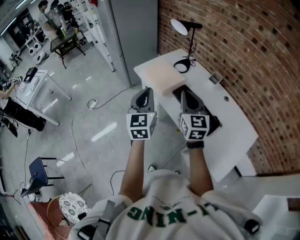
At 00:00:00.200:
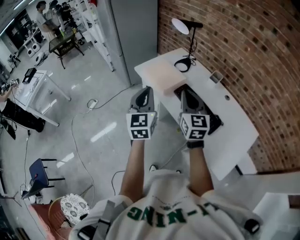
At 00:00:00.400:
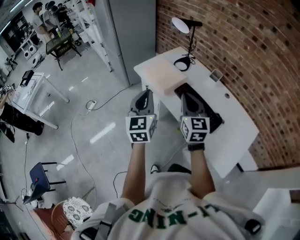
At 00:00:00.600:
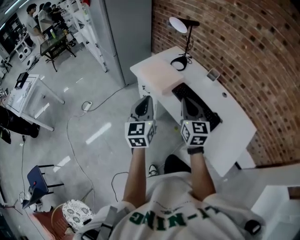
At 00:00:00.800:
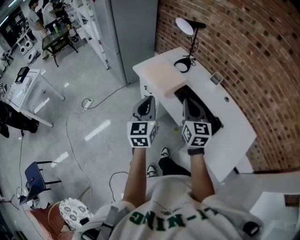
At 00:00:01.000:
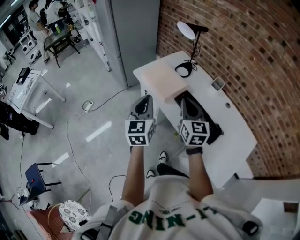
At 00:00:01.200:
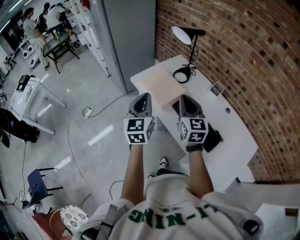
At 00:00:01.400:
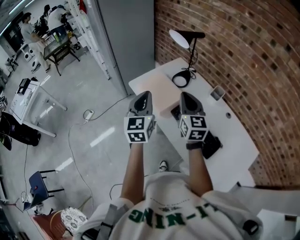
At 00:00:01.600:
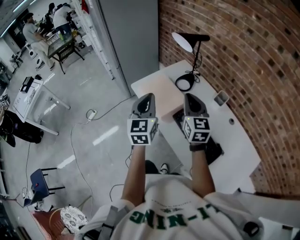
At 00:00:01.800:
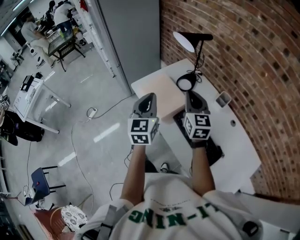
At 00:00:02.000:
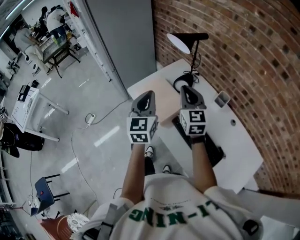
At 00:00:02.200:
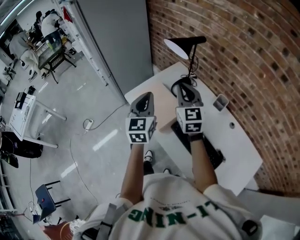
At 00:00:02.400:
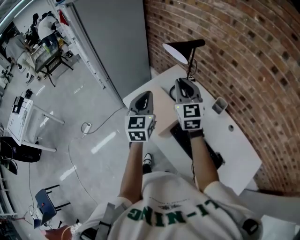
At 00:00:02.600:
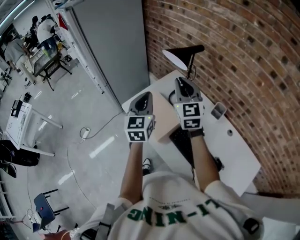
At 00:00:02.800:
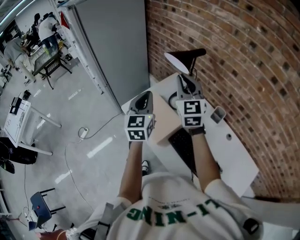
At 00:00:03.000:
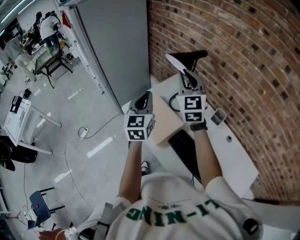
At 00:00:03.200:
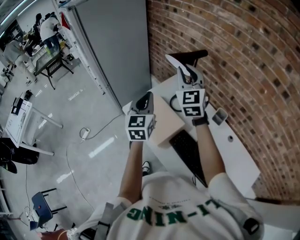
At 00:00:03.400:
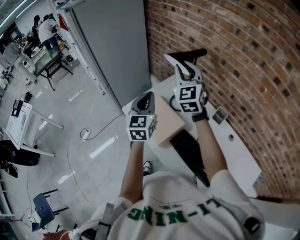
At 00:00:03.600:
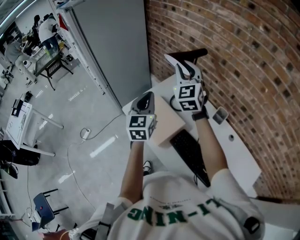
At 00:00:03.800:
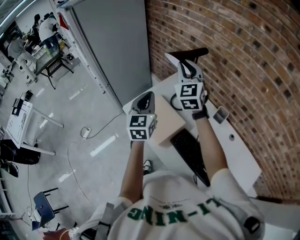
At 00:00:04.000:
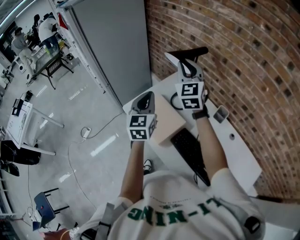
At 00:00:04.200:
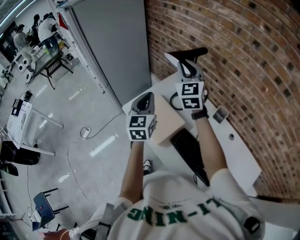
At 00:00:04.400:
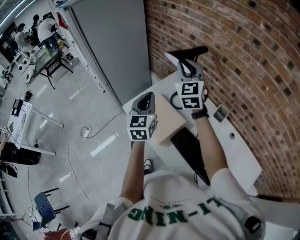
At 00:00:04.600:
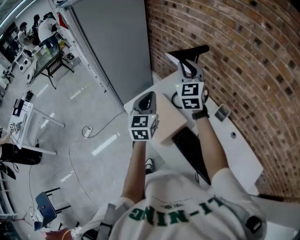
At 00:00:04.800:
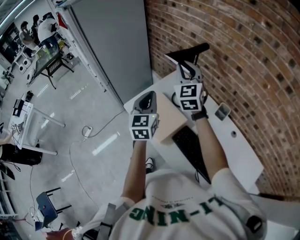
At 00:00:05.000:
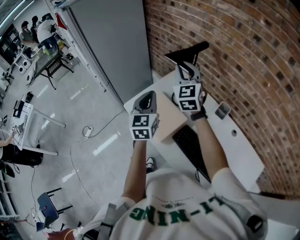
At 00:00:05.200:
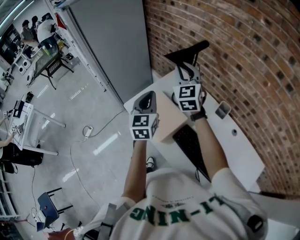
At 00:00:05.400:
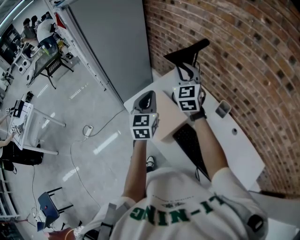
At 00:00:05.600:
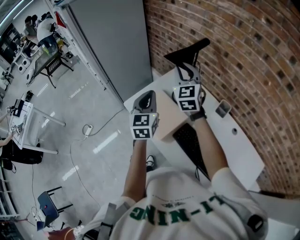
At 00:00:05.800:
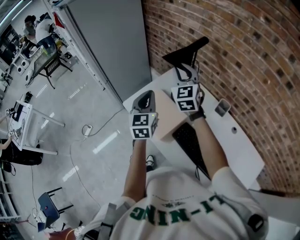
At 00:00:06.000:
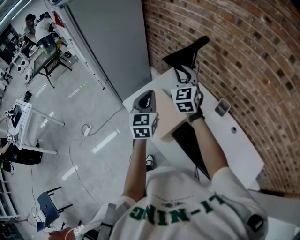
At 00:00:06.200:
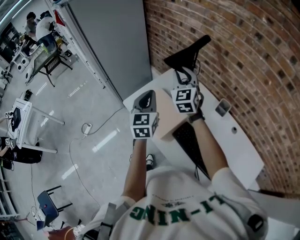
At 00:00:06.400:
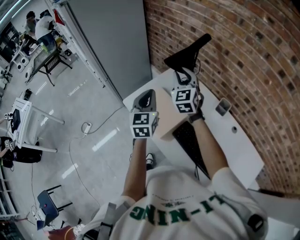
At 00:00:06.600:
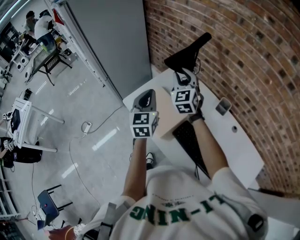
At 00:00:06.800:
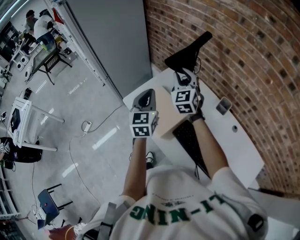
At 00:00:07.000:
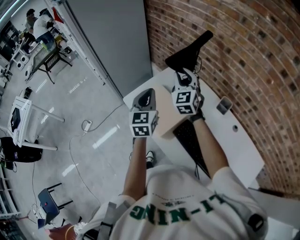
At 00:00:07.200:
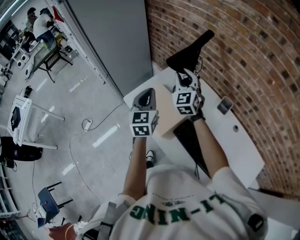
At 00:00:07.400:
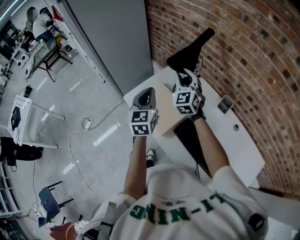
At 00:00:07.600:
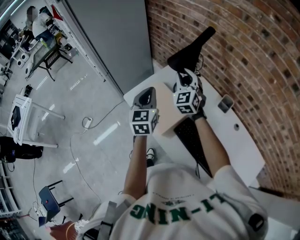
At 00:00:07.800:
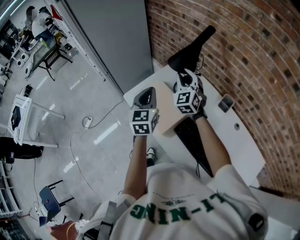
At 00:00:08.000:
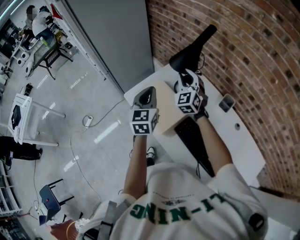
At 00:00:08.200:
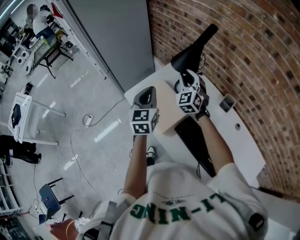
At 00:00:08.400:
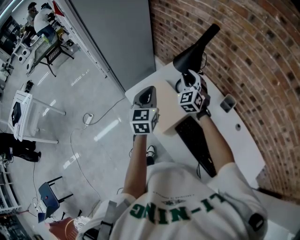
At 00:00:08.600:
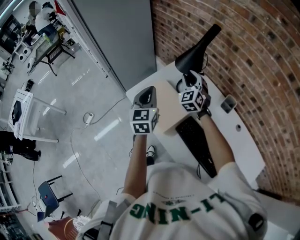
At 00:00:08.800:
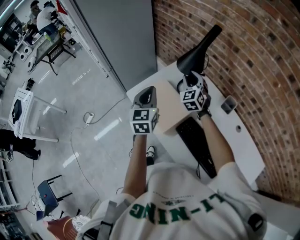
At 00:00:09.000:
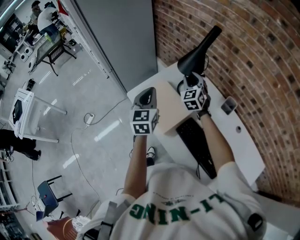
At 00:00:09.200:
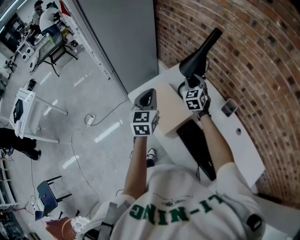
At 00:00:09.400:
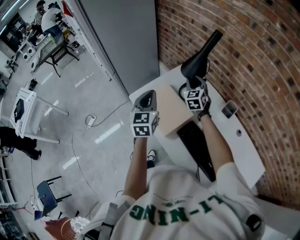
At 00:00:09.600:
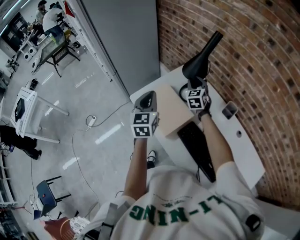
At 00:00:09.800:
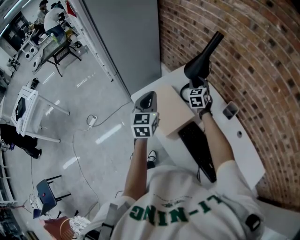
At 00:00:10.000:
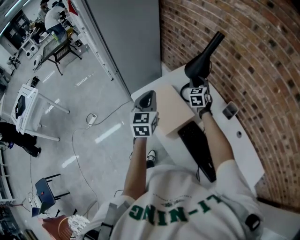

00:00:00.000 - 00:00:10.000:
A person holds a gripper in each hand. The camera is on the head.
00:00:00.000 - 00:00:01.400: Both grippers move forward, some 15 cm.
00:00:01.400 - 00:00:02.800: Both grippers move forward, some 20 cm.
00:00:02.800 - 00:00:04.200: The right gripper shifts some 5 cm forward.
00:00:04.200 - 00:00:05.800: The right gripper goes about 5 cm downward.
00:00:05.800 - 00:00:07.200: The right gripper shifts roughly 10 cm downward.
00:00:07.200 - 00:00:08.600: The right gripper moves downward, some 5 cm.
00:00:08.600 - 00:00:10.000: The right gripper shifts by roughly 5 cm, and changes its angle by approximately 20 degrees.

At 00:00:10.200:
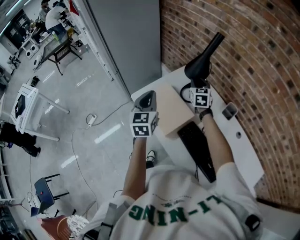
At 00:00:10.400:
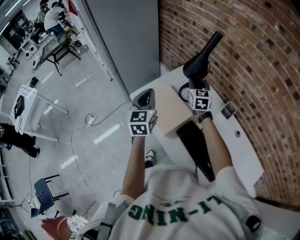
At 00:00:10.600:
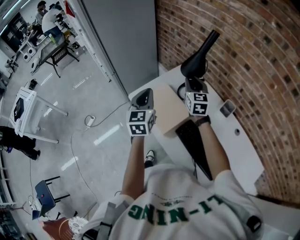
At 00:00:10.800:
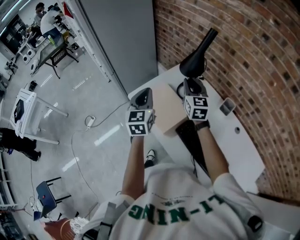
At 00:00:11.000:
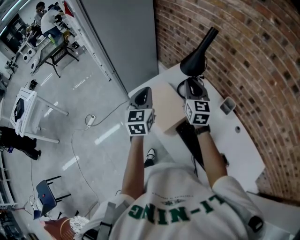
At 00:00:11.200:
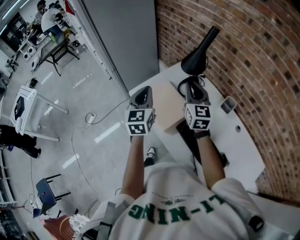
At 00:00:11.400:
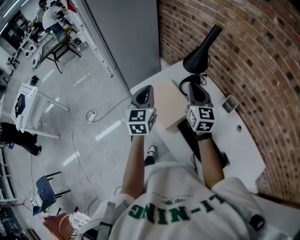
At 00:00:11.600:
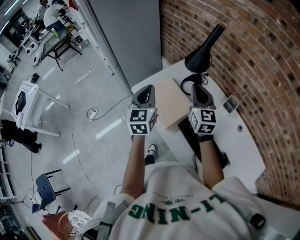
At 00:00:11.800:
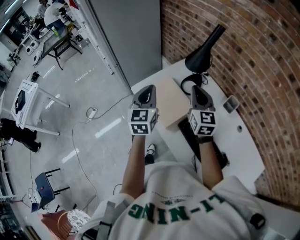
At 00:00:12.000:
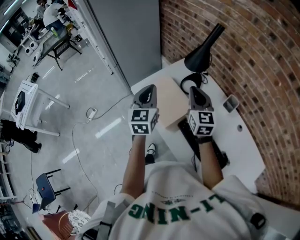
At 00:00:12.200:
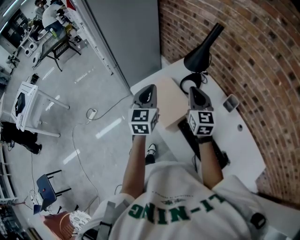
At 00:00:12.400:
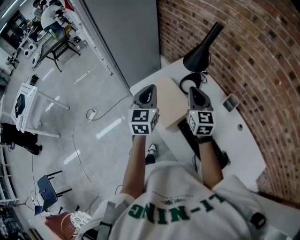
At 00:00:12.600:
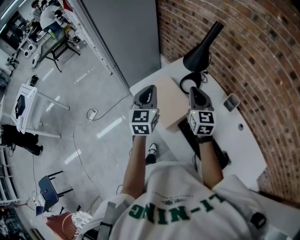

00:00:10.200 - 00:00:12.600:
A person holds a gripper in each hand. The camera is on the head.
00:00:10.200 - 00:00:11.400: The right gripper goes approximately 15 cm backward and upward, rotates approximately 20 degrees, and closes up.
00:00:11.400 - 00:00:12.600: The grippers move only a little.

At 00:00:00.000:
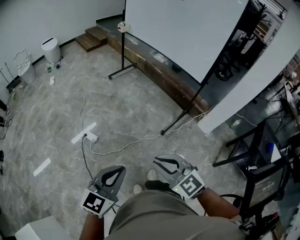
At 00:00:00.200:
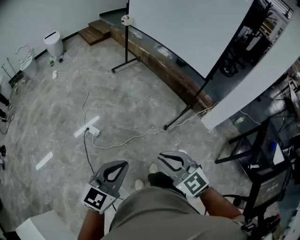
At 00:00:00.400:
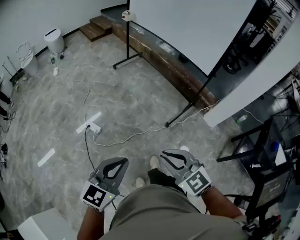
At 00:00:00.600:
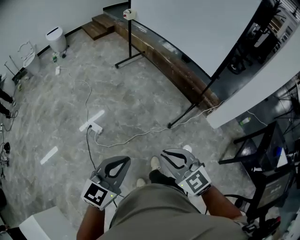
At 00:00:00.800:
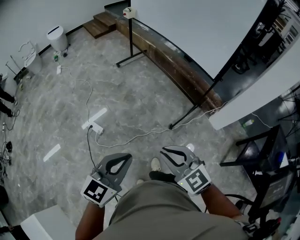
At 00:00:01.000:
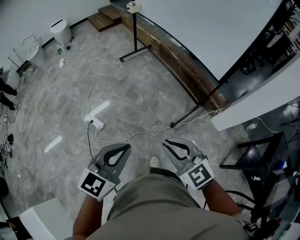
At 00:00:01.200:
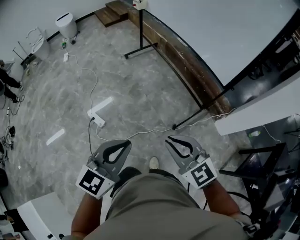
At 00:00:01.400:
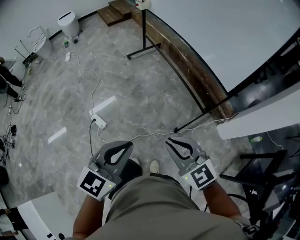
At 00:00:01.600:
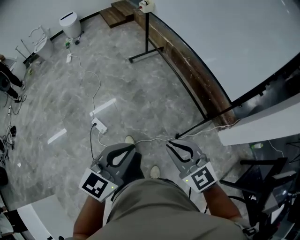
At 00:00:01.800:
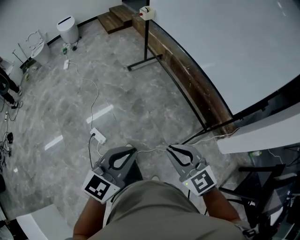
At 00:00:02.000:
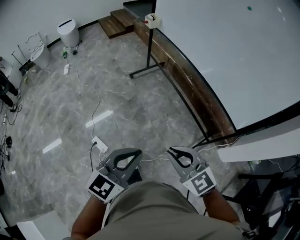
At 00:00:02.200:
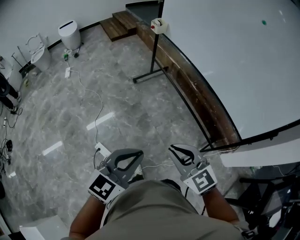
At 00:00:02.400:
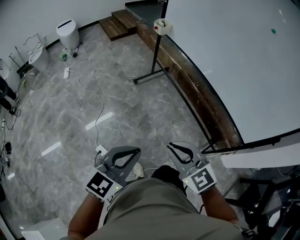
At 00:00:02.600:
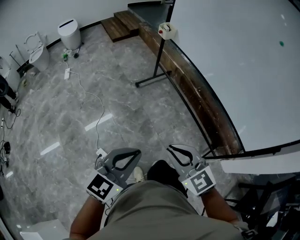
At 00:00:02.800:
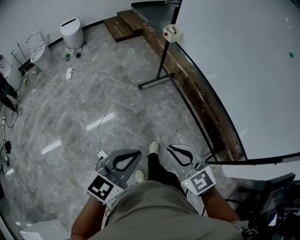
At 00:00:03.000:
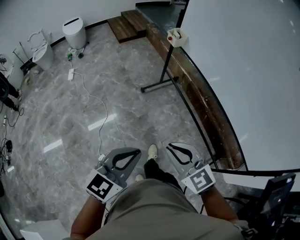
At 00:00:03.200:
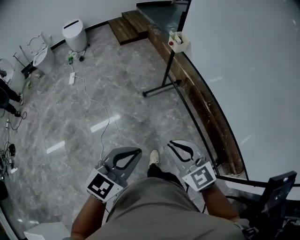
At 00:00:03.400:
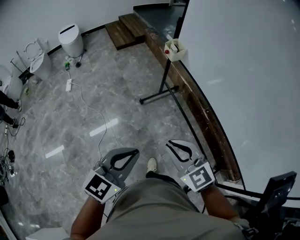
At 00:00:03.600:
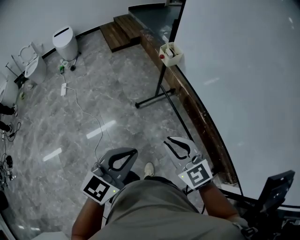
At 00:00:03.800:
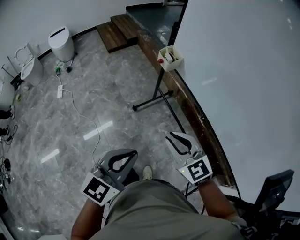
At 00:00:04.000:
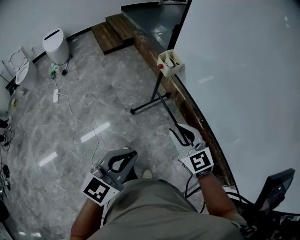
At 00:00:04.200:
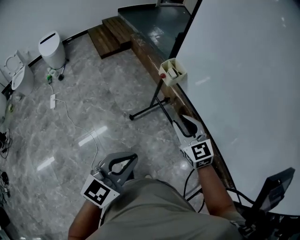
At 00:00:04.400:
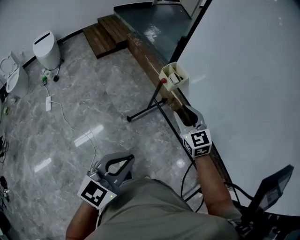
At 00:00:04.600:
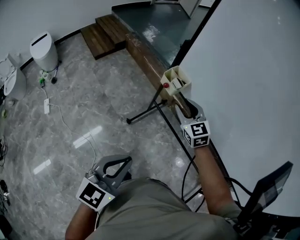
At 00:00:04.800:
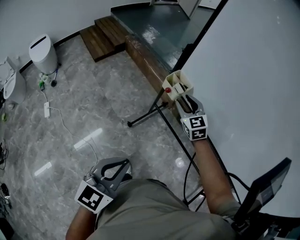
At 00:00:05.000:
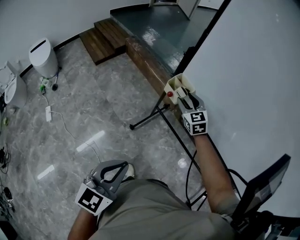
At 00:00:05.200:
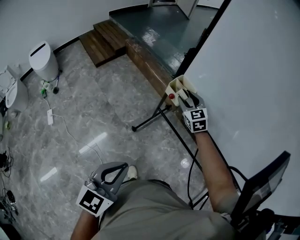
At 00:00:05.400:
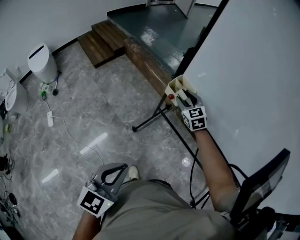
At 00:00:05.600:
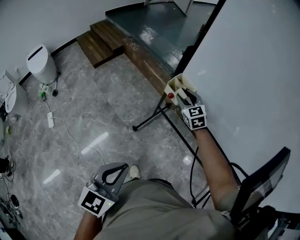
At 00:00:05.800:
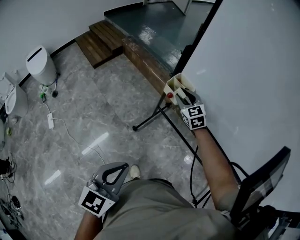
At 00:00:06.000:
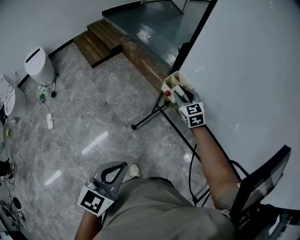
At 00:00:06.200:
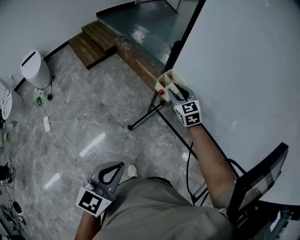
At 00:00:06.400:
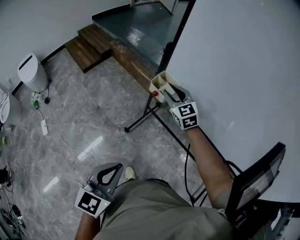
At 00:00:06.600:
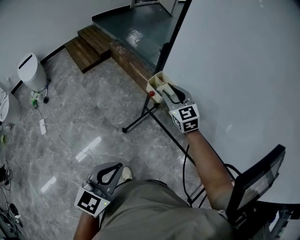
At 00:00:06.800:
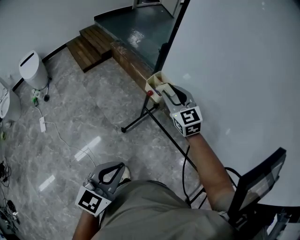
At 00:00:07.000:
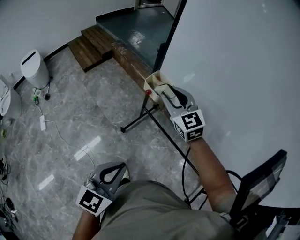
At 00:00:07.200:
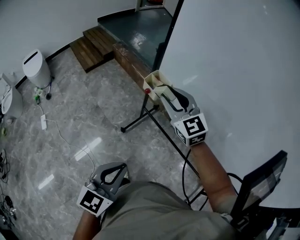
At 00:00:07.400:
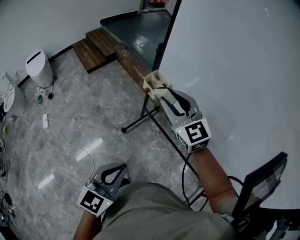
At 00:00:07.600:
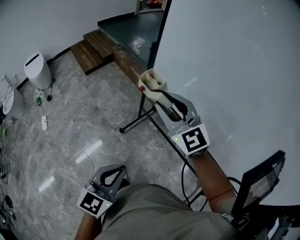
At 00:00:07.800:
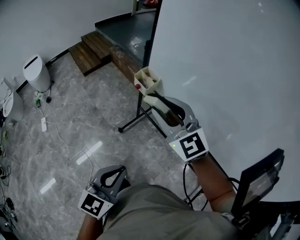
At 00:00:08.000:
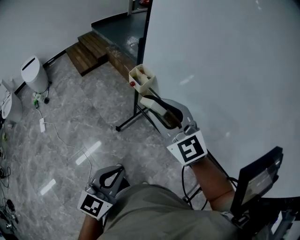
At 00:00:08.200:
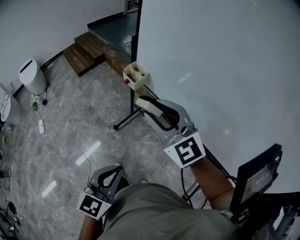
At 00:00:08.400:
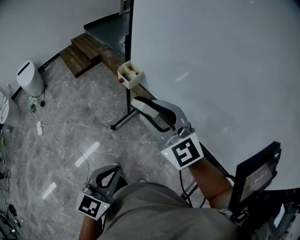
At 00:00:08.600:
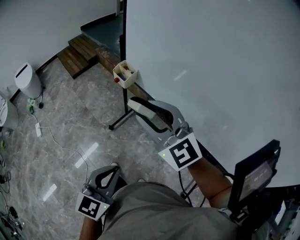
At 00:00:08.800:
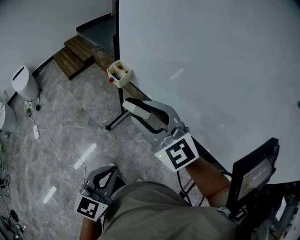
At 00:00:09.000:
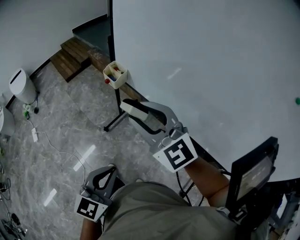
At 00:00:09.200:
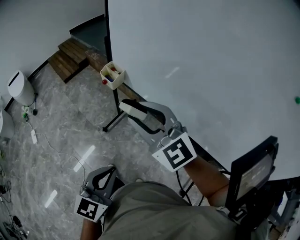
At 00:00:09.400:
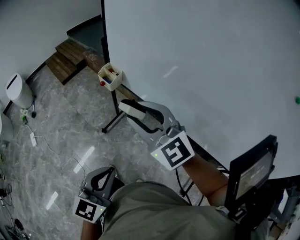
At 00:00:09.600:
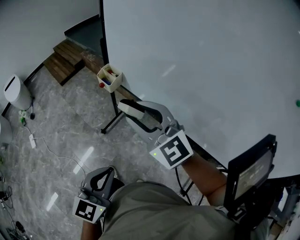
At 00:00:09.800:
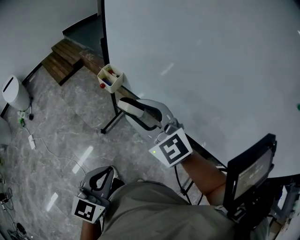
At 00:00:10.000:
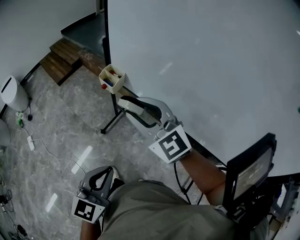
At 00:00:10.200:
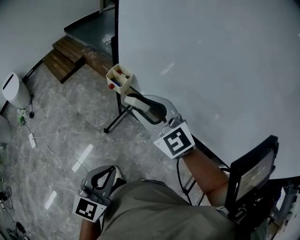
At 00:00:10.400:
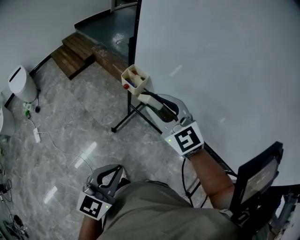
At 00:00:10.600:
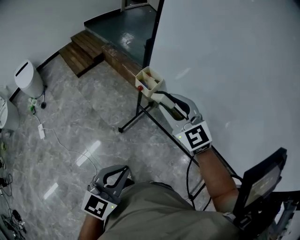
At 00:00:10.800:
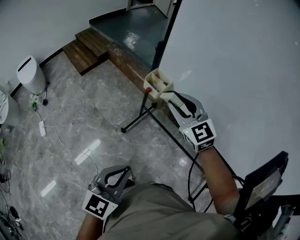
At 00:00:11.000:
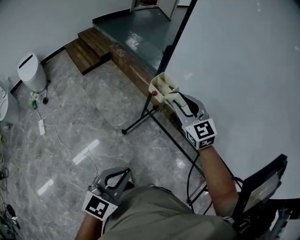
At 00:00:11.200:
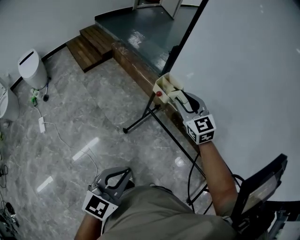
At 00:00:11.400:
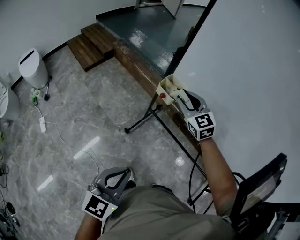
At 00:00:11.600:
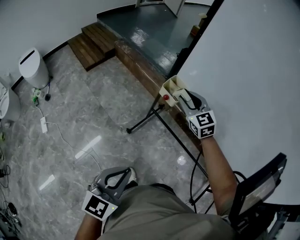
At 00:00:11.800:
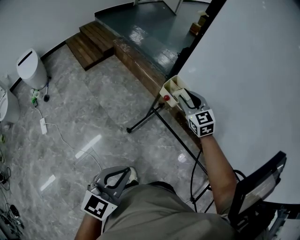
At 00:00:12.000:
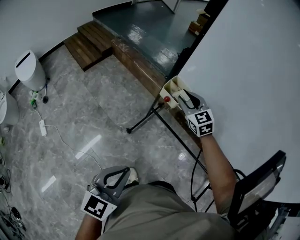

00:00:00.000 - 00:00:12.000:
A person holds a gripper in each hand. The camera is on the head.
00:00:00.000 - 00:00:01.600: Both grippers travel together forward, approximately 30 cm.
00:00:01.600 - 00:00:03.000: The two grippers travel together, forward and to the left, roughly 50 cm.
00:00:03.000 - 00:00:04.400: Both grippers are carried forward, about 50 cm. The right gripper changes its angle by some 30 degrees, and opens.
00:00:04.400 - 00:00:06.000: The left gripper is displaced to the left and forward by approximately 10 cm; the right gripper goes roughly 20 cm forward.
00:00:06.000 - 00:00:07.600: The right gripper heads upward and backward, covering roughly 30 cm, and swivels some 30 degrees. The left gripper goes approximately 15 cm to the right and backward.
00:00:07.600 - 00:00:09.000: The left gripper travels to the right and backward by approximately 10 cm. Meanwhile the right gripper goes roughly 15 cm backward and to the right.
00:00:09.000 - 00:00:10.400: The left gripper travels to the left and forward by approximately 10 cm, while the right gripper shifts about 10 cm forward.
00:00:10.400 - 00:00:12.000: The left gripper travels to the left and forward by about 20 cm, while the right gripper shifts approximately 25 cm forward and downward, and rotates roughly 20 degrees.
